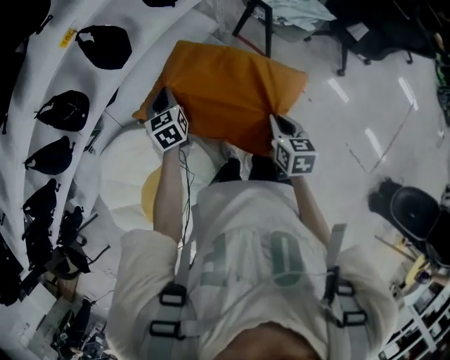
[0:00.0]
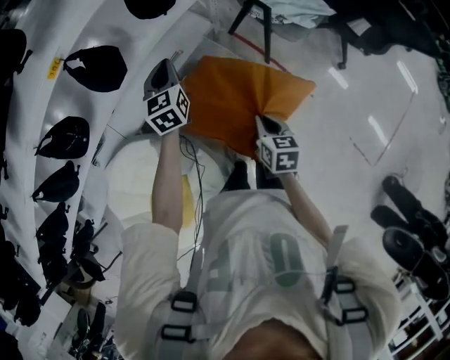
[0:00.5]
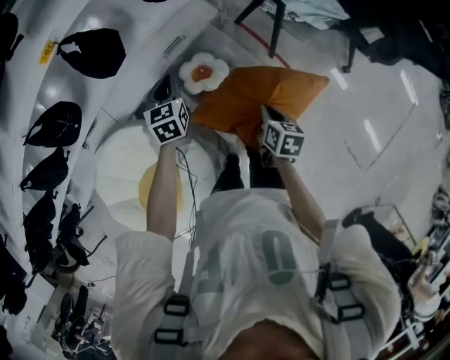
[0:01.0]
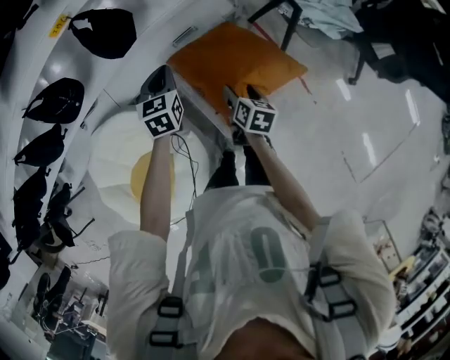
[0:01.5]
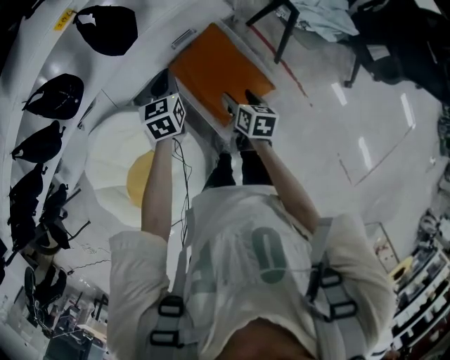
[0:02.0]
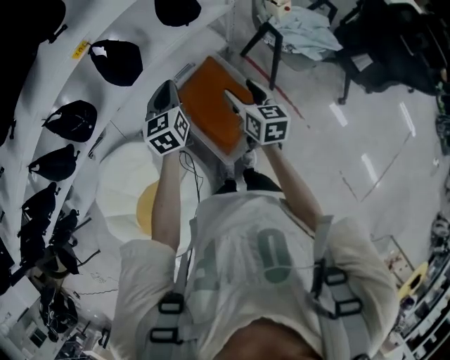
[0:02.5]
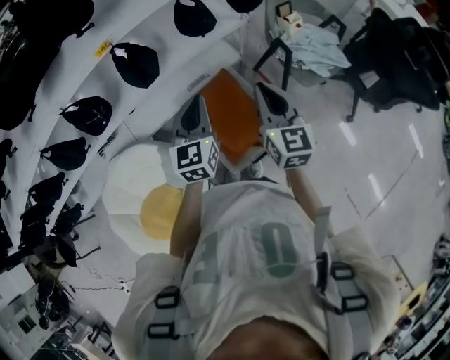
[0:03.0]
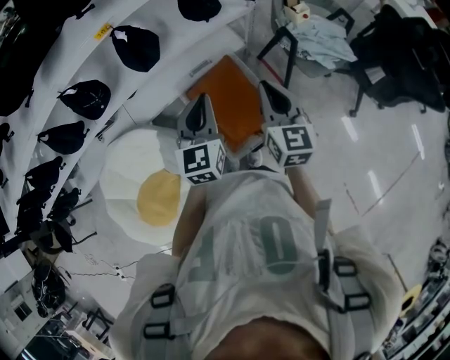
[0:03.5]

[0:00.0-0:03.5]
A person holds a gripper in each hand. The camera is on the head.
0.0 to 2.0 s: The right gripper shifts approximately 20 cm forward, downward and to the left, and opens up. The left gripper travels forward by about 5 cm.
2.0 to 3.5 s: The right gripper shifts approximately 25 cm upward, tips its fingers upward by roughly 30 degrees, and closes, while the left gripper shifts about 20 cm upward, backward and to the right, and rotates about 20 degrees.

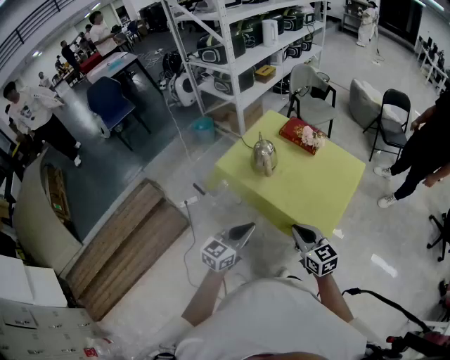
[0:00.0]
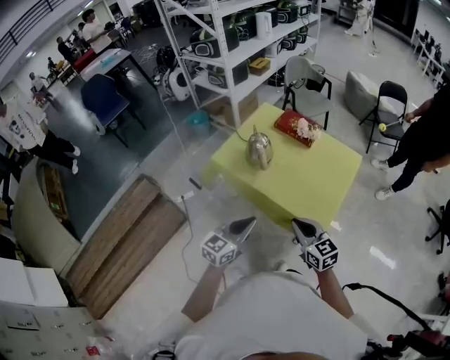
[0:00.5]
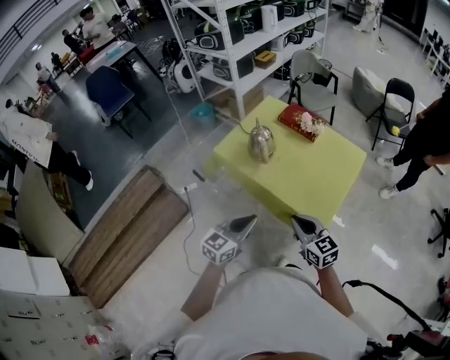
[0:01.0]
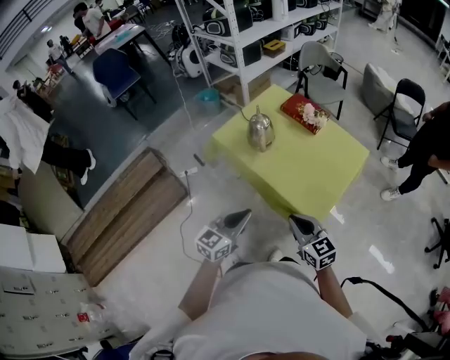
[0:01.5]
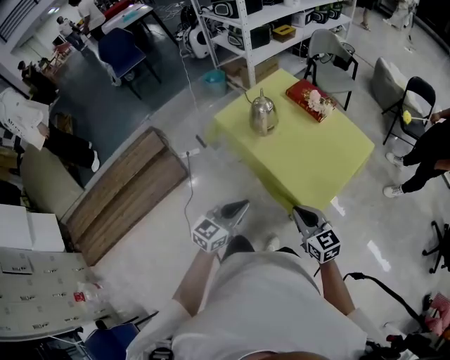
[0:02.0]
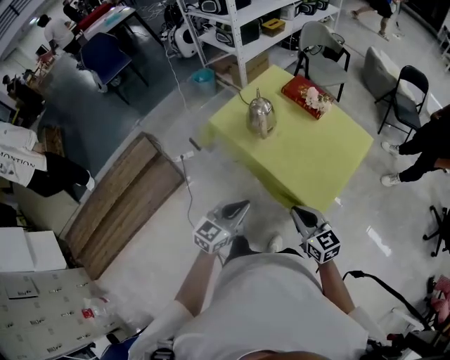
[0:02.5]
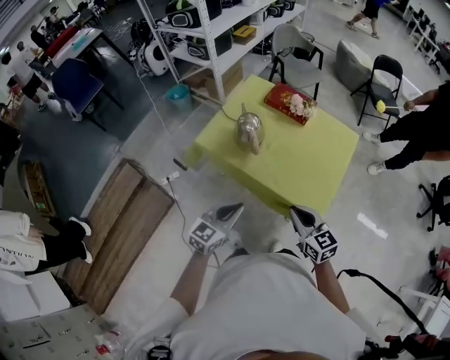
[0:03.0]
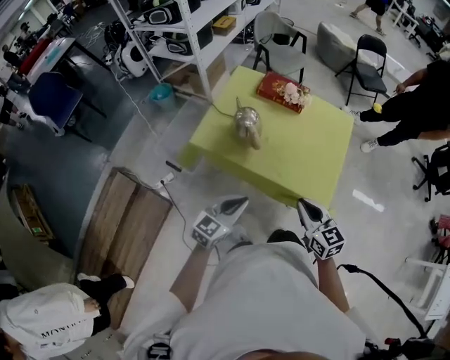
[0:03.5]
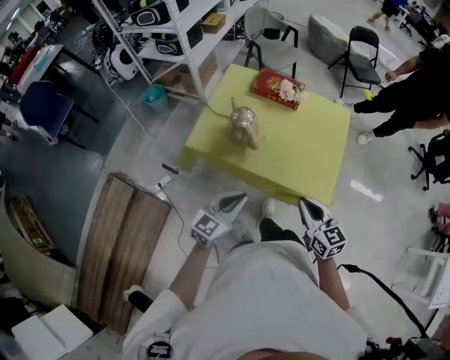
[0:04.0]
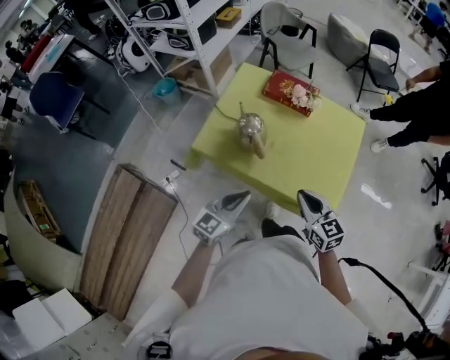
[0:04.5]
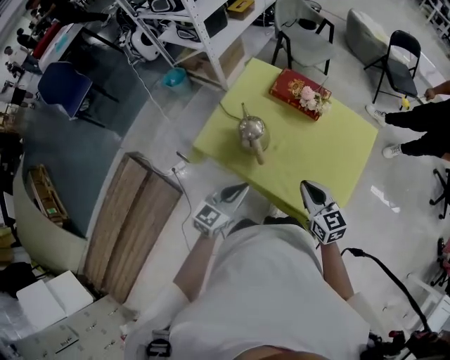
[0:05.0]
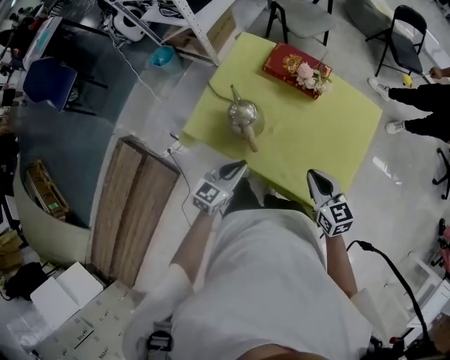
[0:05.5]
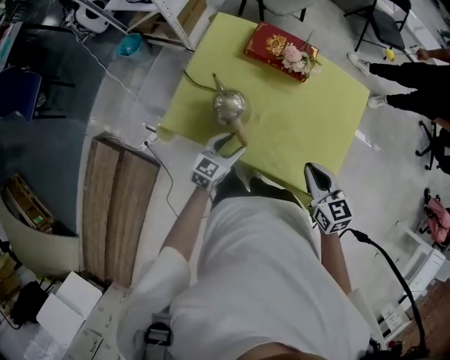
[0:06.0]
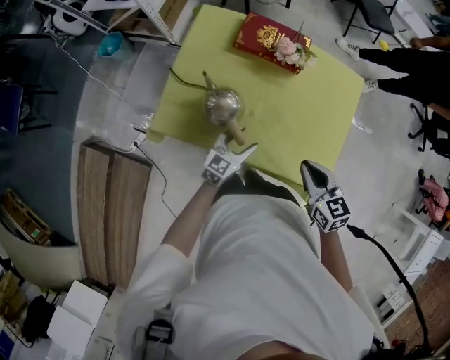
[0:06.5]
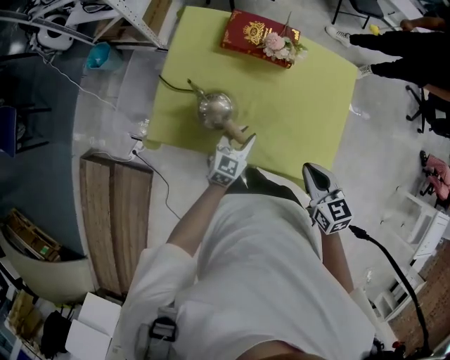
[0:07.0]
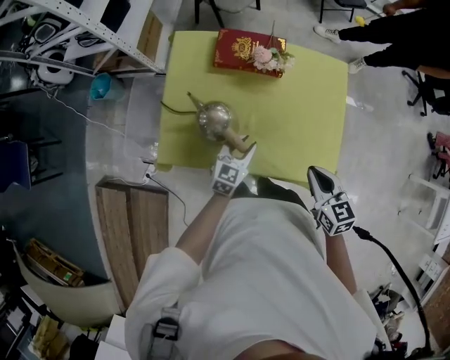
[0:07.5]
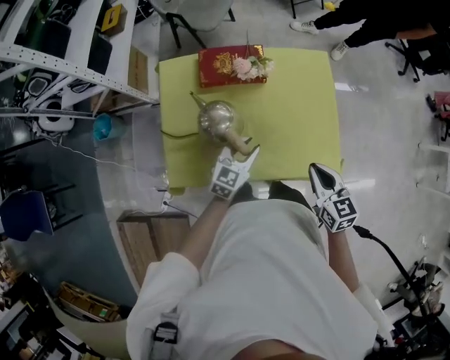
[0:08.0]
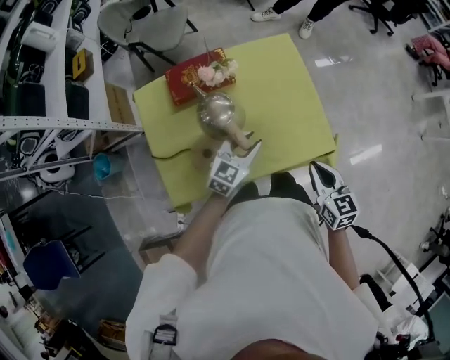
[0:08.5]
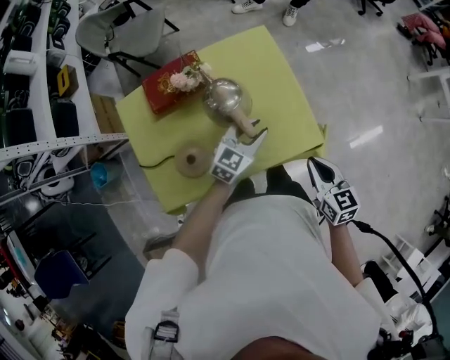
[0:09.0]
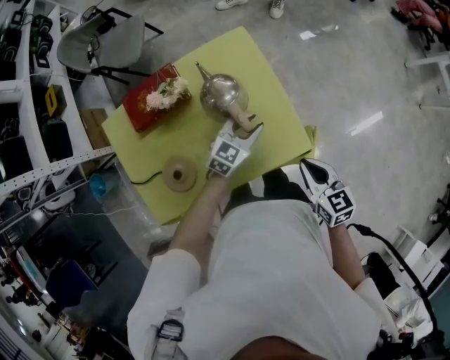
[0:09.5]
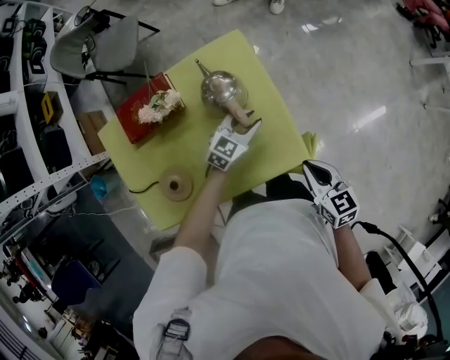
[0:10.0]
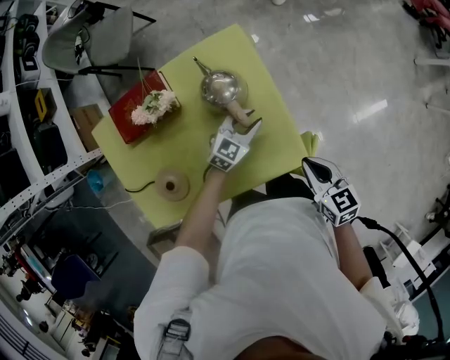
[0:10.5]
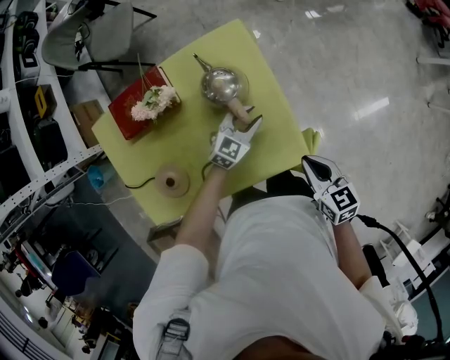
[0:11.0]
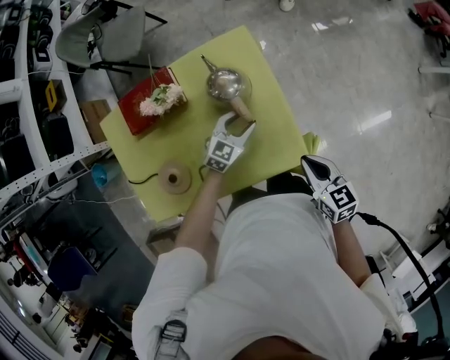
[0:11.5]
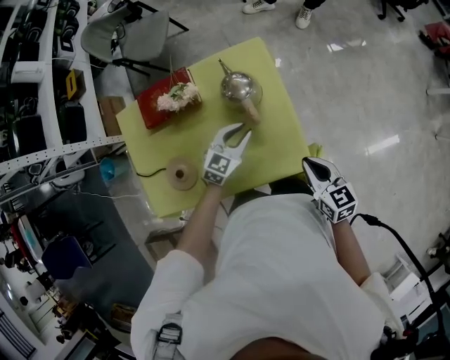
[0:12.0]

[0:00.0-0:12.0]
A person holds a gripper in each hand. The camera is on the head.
0.0 to 2.0 s: The grippers both shift to the right by some 10 cm.
2.0 to 4.0 s: The left gripper shifts by roughly 20 cm, and changes its angle by about 30 degrees. The right gripper moves some 15 cm, and rotates some 30 degrees.
4.0 to 6.0 s: The right gripper goes some 20 cm forward, while the left gripper shifts roughly 30 cm forward and downward, and opens.
6.0 to 8.0 s: The right gripper swivels roughly 30 degrees; the left gripper ends up some 10 cm from where it was, rotates approximately 30 degrees, and closes up.
8.0 to 10.0 s: The two grippers go roughly 30 cm to the right and forward. The left gripper turns by approximately 30 degrees.
10.0 to 12.0 s: The left gripper heads to the left, covering about 5 cm.

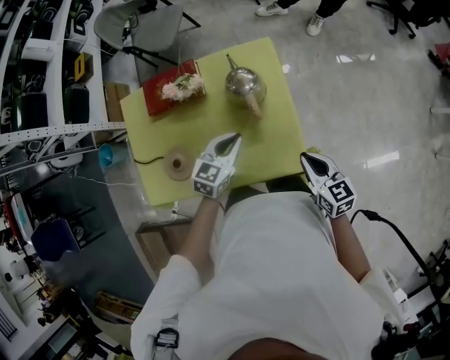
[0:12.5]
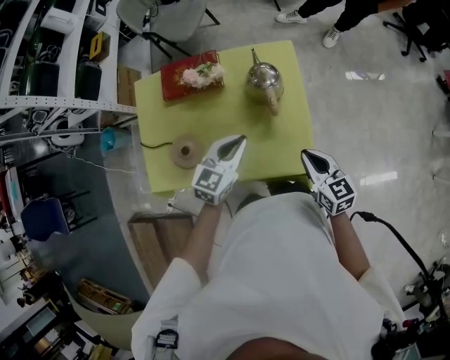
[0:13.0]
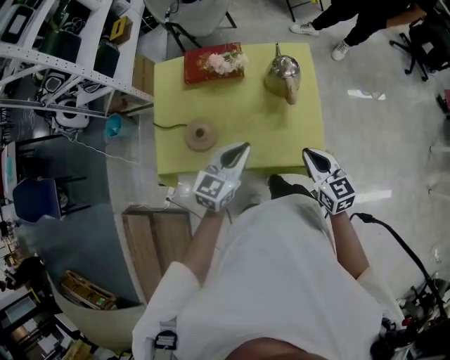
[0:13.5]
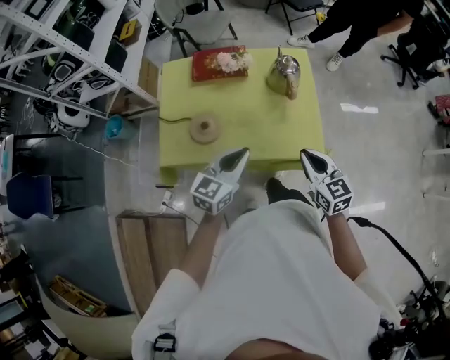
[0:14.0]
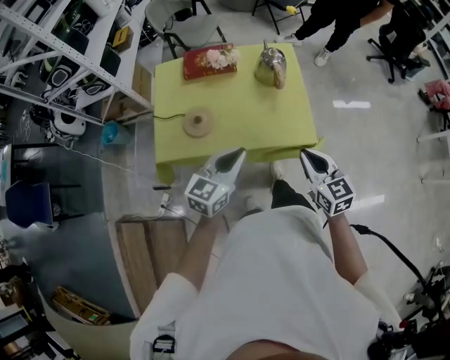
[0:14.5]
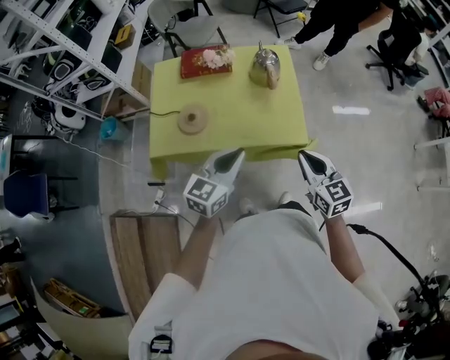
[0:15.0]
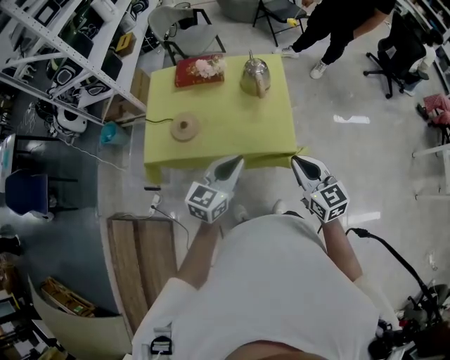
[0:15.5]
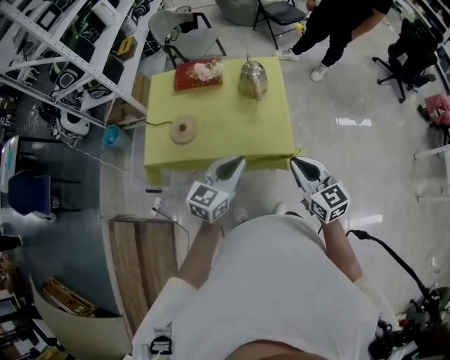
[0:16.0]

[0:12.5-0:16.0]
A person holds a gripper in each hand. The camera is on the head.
12.5 to 14.5 s: The left gripper goes approximately 35 cm backward and upward, while the right gripper heads backward, to the left and upward, covering approximately 30 cm.
14.5 to 16.0 s: Both grippers travel together to the right, some 10 cm.

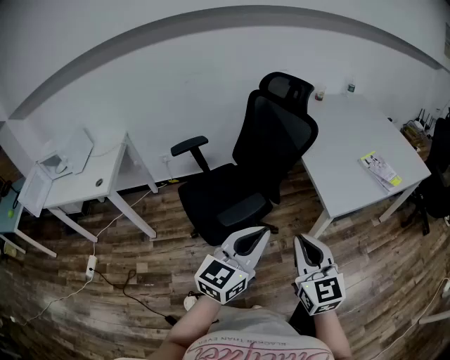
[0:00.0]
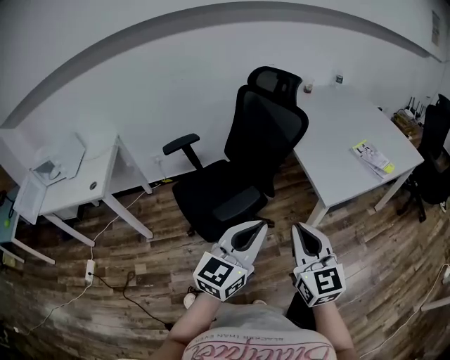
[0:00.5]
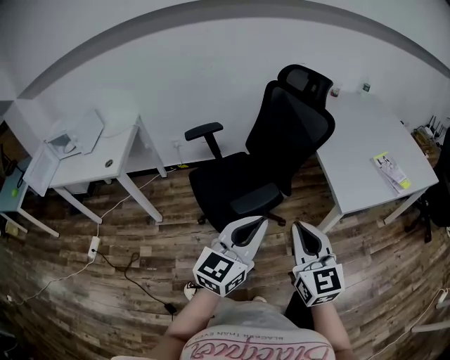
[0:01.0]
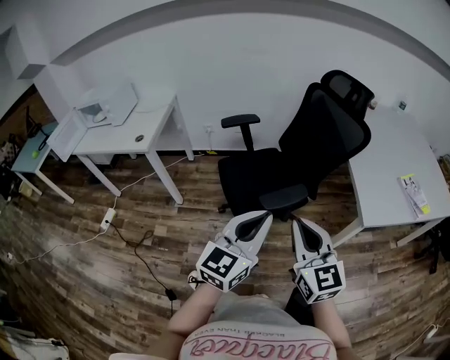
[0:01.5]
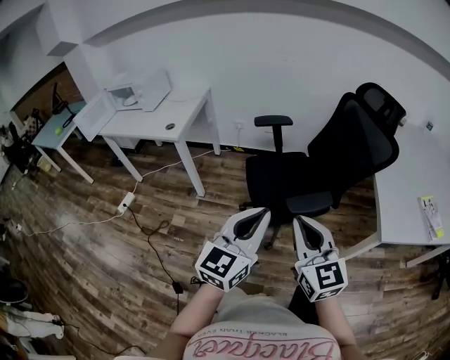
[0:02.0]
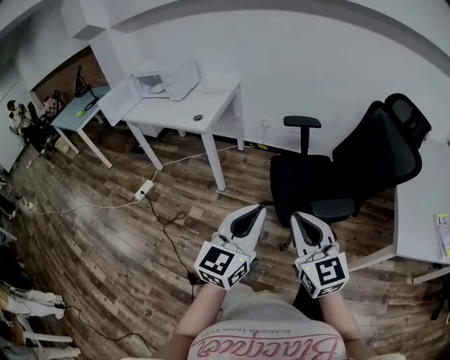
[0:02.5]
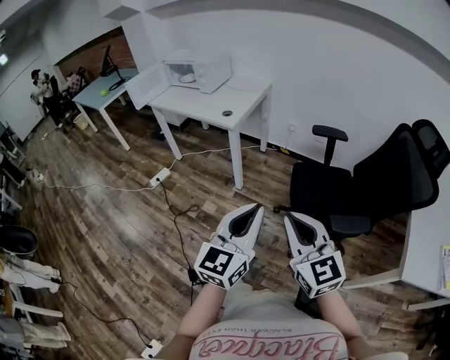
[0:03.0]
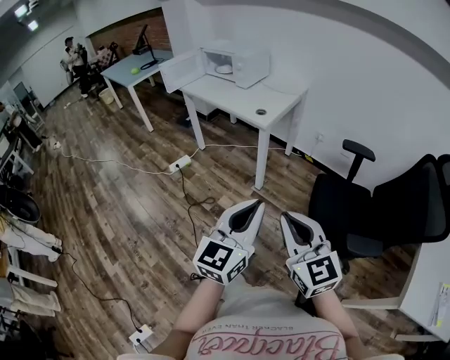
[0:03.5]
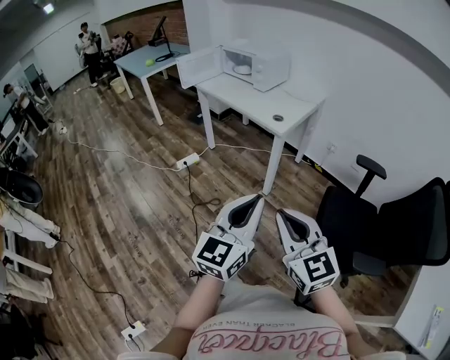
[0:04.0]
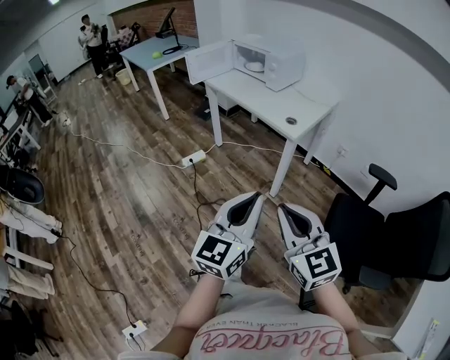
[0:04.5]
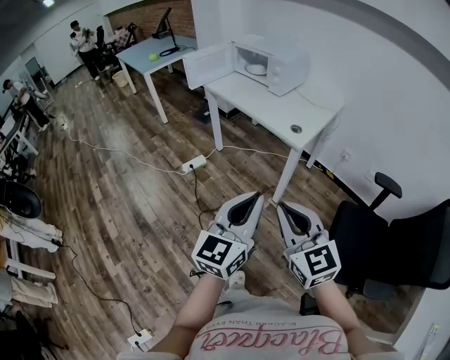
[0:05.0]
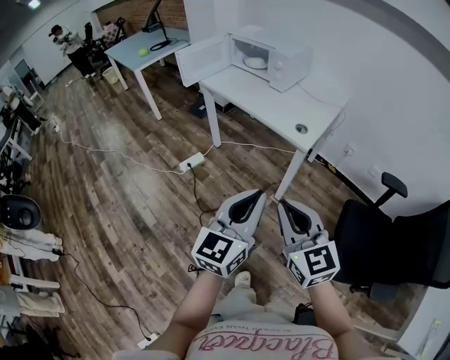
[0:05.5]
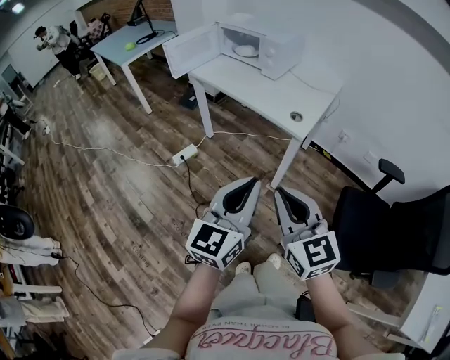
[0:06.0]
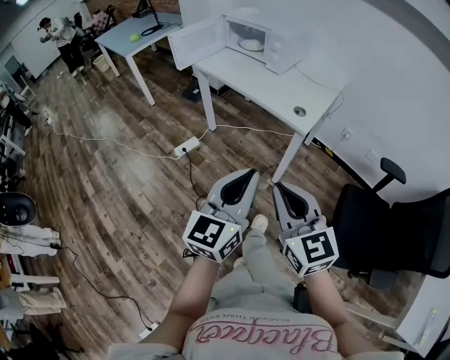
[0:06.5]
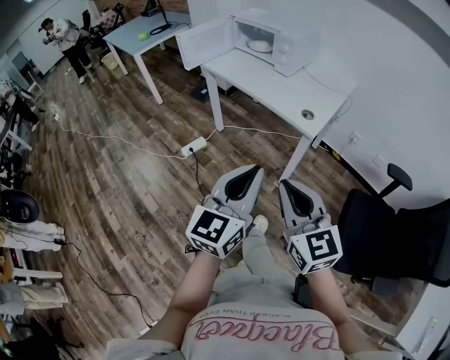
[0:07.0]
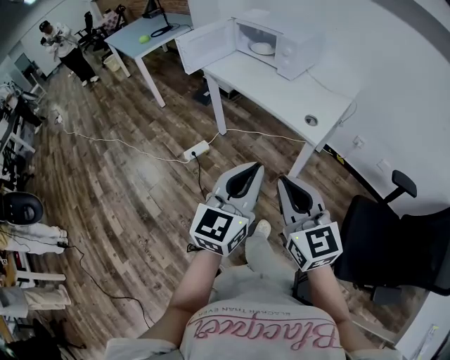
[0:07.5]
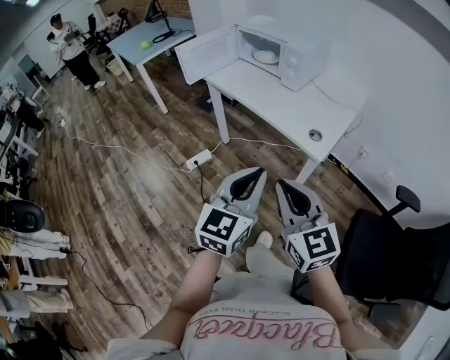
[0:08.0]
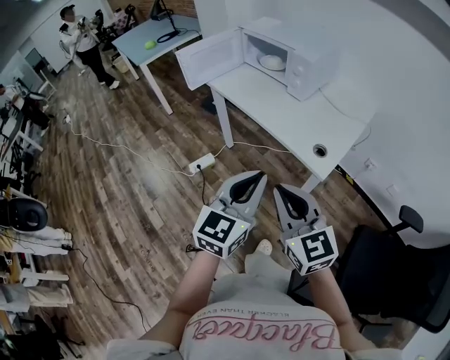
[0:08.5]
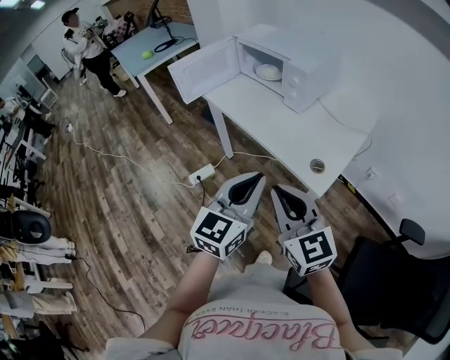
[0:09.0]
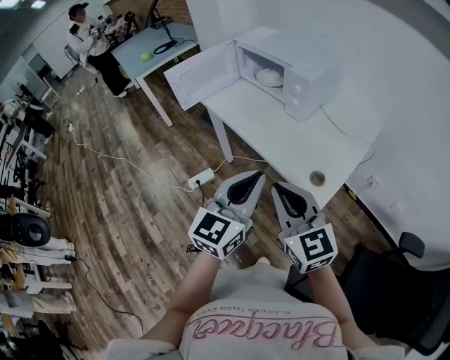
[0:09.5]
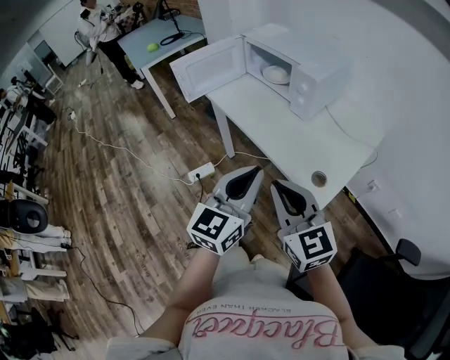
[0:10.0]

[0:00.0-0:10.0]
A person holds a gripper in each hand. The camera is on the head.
0.0 to 2.0 s: The right gripper moves approximately 20 cm, and turns by approximately 30 degrees; the left gripper moves some 20 cm, and rotates approximately 30 degrees.
2.0 to 4.0 s: The right gripper ends up some 35 cm from where it was, and turns by approximately 40 degrees. The left gripper shifts by approximately 30 cm, and changes its angle by some 40 degrees.
4.0 to 6.0 s: The grippers both shift forward and to the left by approximately 25 cm.
6.0 to 8.0 s: The two grippers go roughly 15 cm forward.
8.0 to 10.0 s: The grippers both shift forward by roughly 20 cm.
